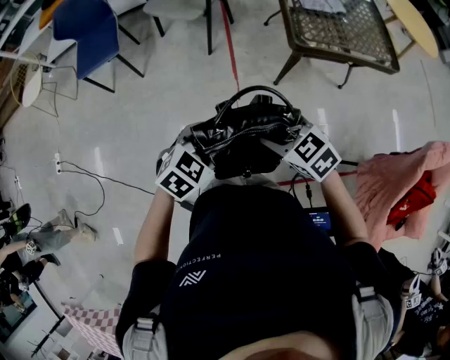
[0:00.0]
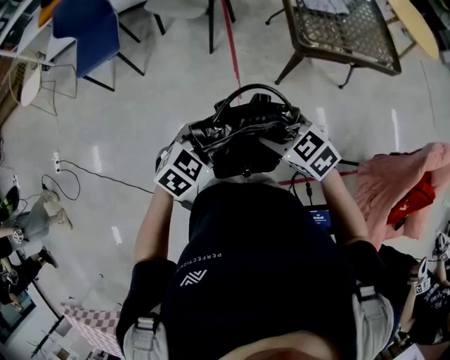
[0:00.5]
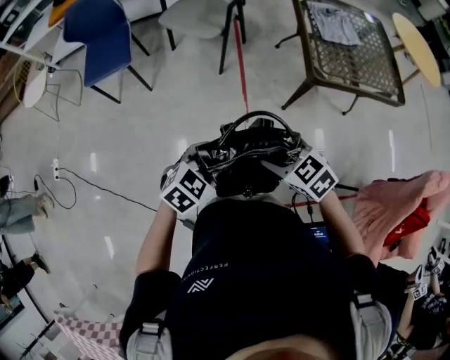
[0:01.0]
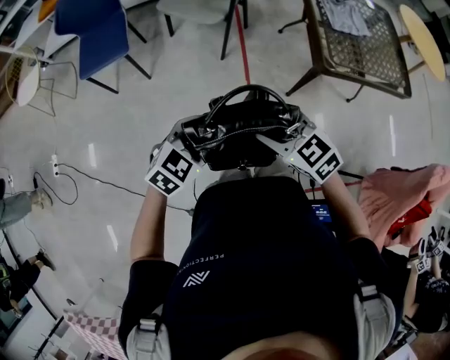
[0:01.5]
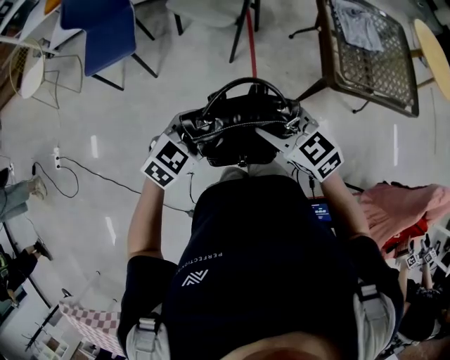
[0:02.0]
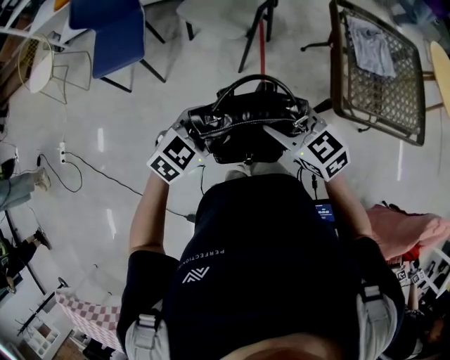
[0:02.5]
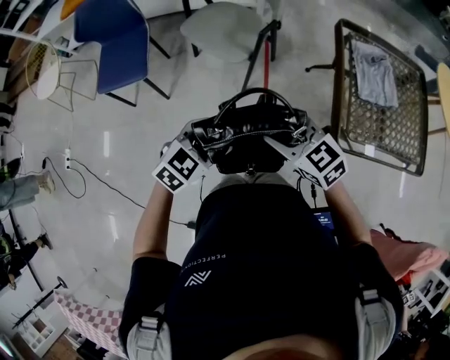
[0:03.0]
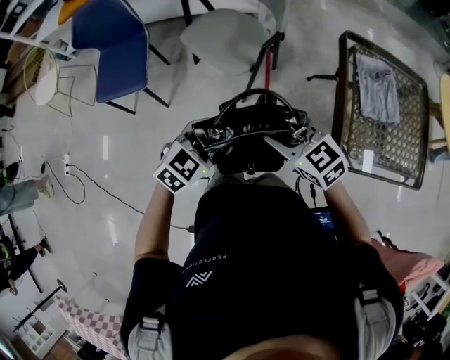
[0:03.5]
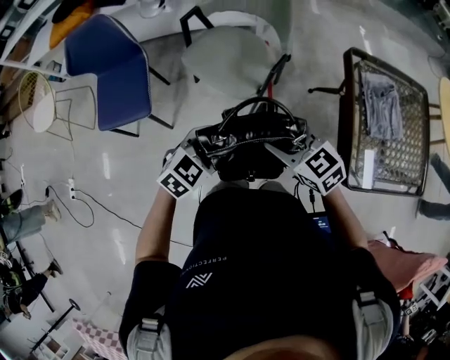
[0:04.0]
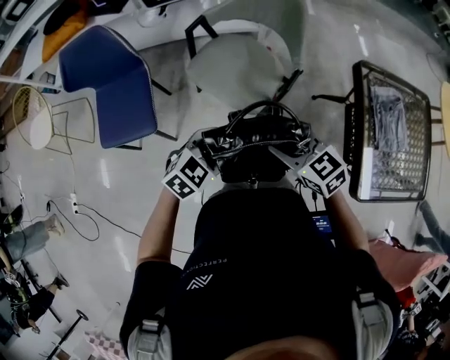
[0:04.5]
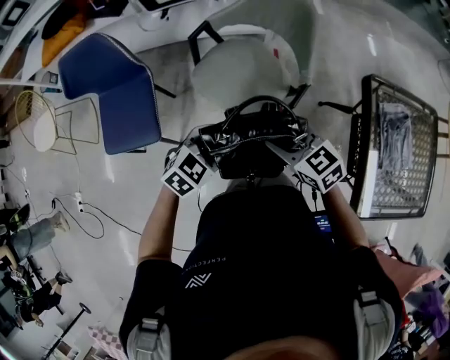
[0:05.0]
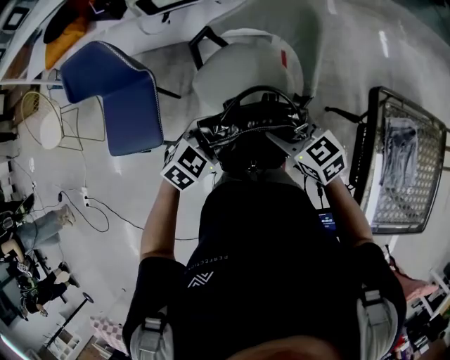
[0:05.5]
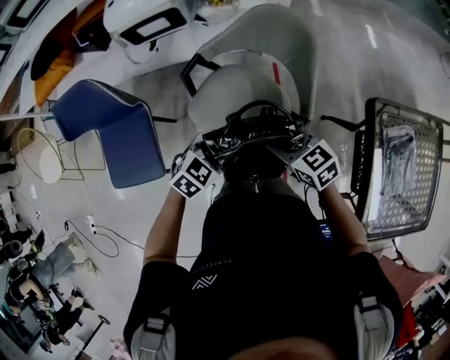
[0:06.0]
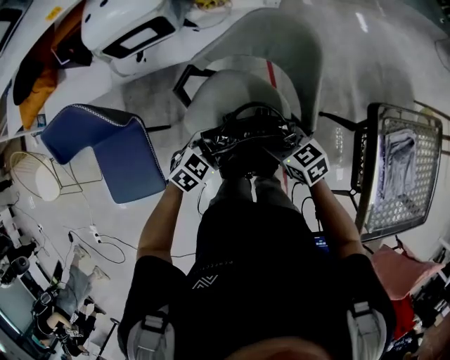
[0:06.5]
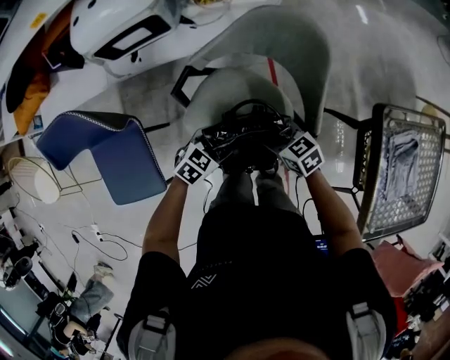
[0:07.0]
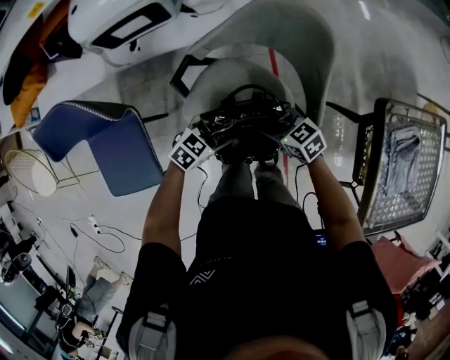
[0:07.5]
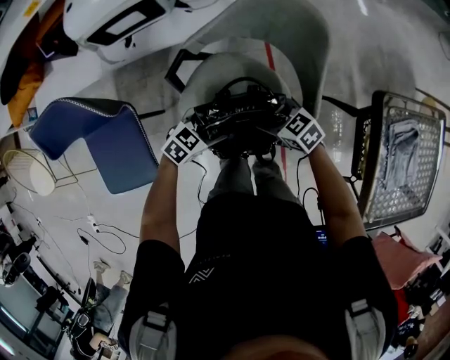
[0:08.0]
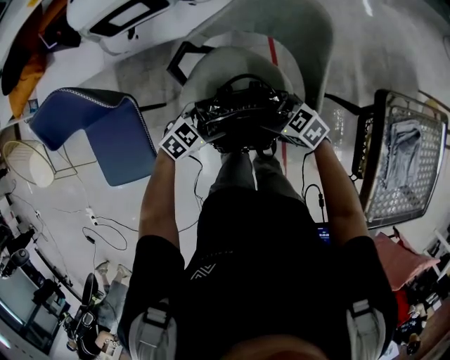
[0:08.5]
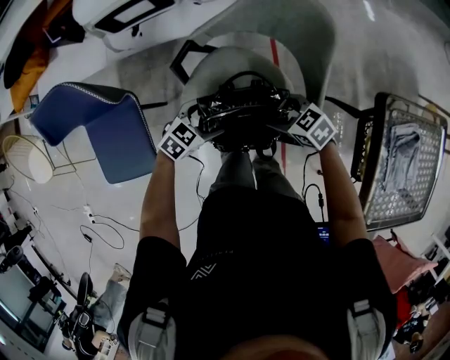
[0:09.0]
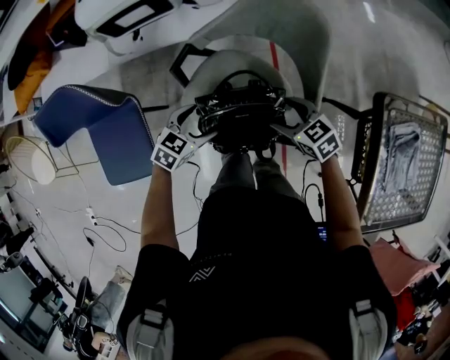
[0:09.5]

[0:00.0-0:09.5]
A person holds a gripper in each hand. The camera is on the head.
0:00.0 to 0:02.0: Both grippers travel together forward and to the left, roughly 25 cm.
0:02.0 to 0:04.0: The two grippers go approximately 35 cm forward.
0:04.0 to 0:05.5: The two grippers go about 25 cm forward.
0:05.5 to 0:07.5: The right gripper goes some 15 cm downward. The left gripper ends up some 25 cm from where it was.
0:07.5 to 0:09.5: The left gripper shifts by roughly 5 cm, while the right gripper shifts by roughly 5 cm.

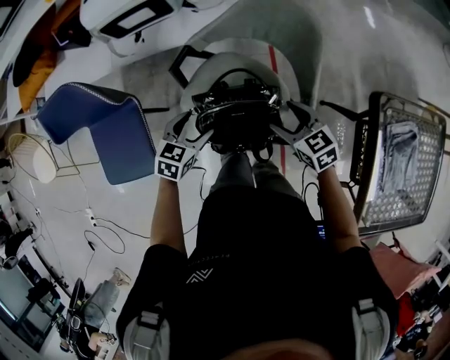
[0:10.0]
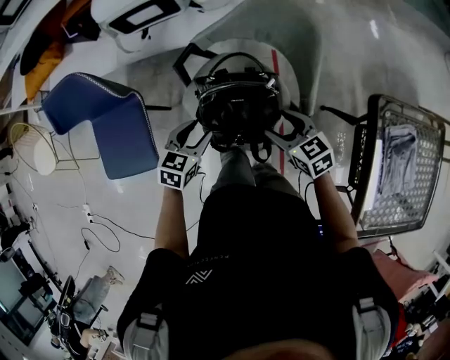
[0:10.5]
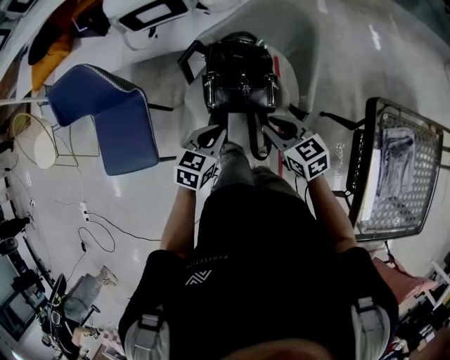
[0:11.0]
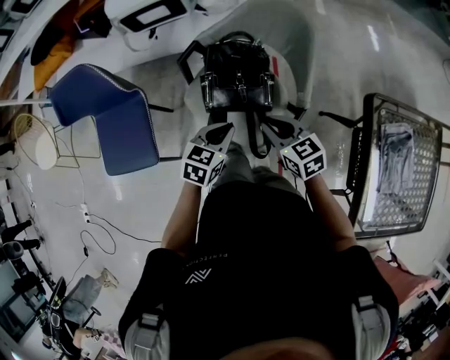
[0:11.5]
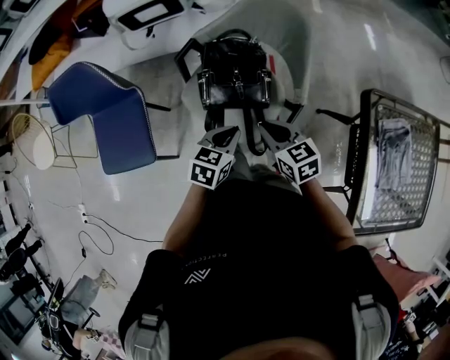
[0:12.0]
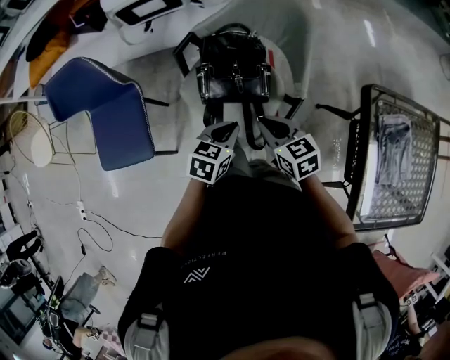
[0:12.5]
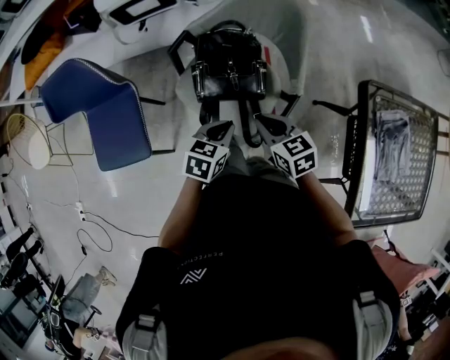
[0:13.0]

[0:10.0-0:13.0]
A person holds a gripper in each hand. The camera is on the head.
0:10.0 to 0:11.5: The right gripper goes approximately 5 cm backward, and closes its fingers, while the left gripper travels to the right and backward by approximately 10 cm, and closes.
0:11.5 to 0:13.0: The grippers make only small movements.

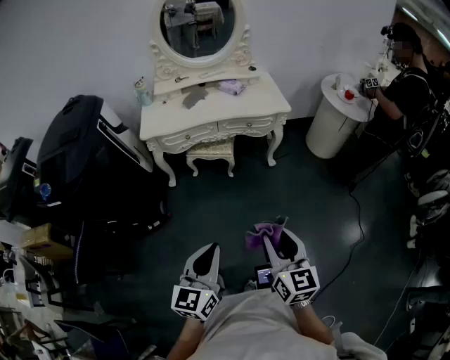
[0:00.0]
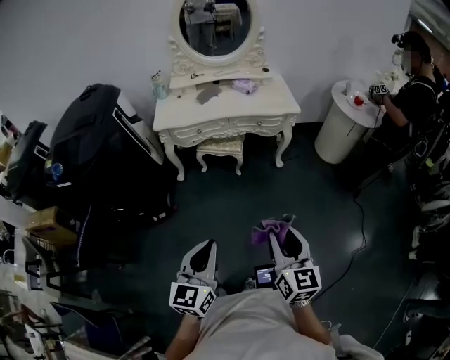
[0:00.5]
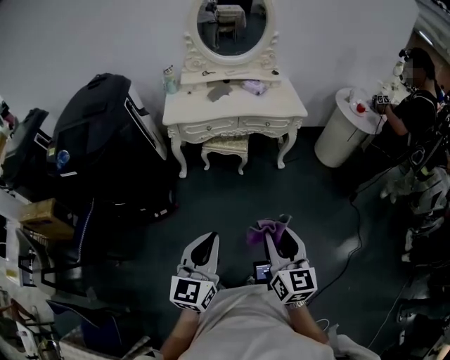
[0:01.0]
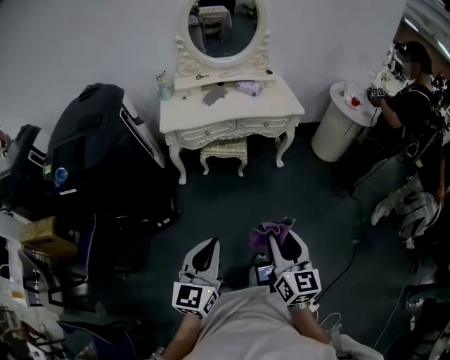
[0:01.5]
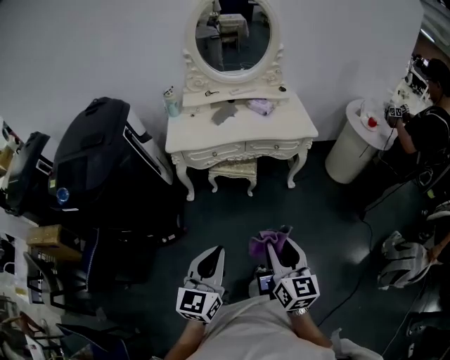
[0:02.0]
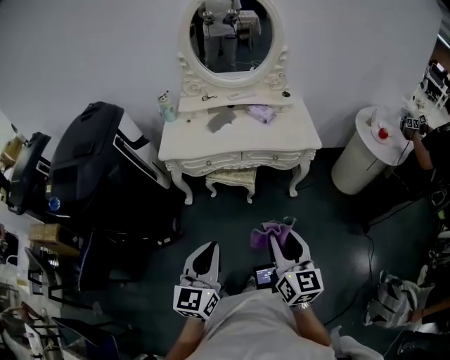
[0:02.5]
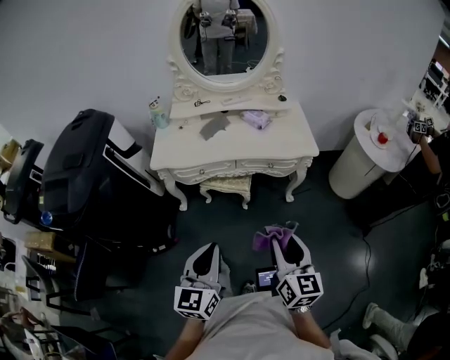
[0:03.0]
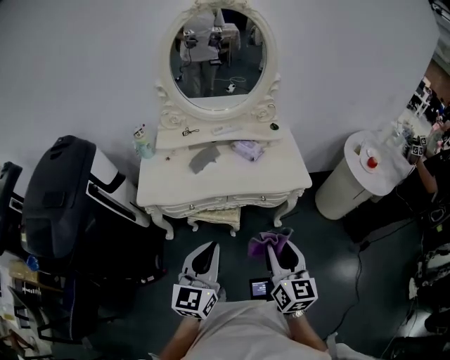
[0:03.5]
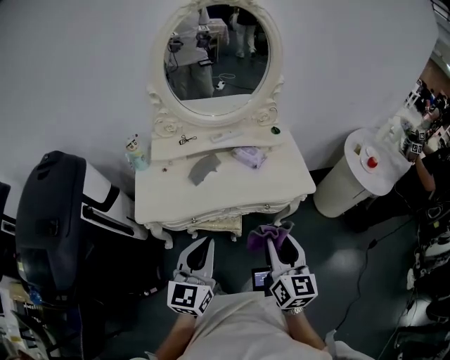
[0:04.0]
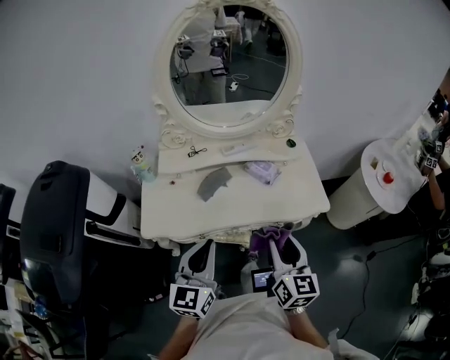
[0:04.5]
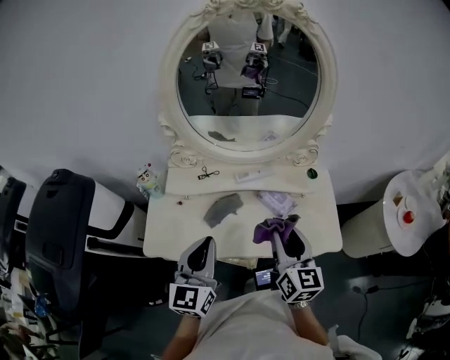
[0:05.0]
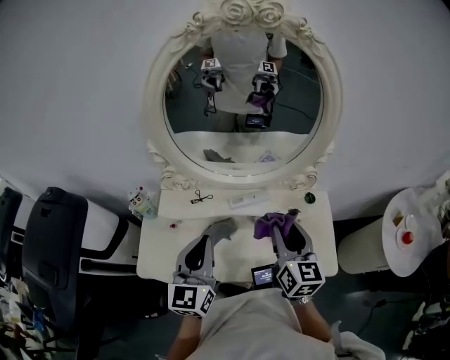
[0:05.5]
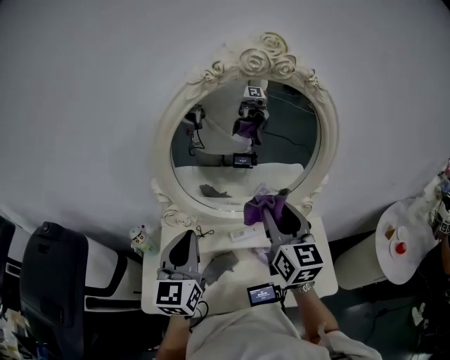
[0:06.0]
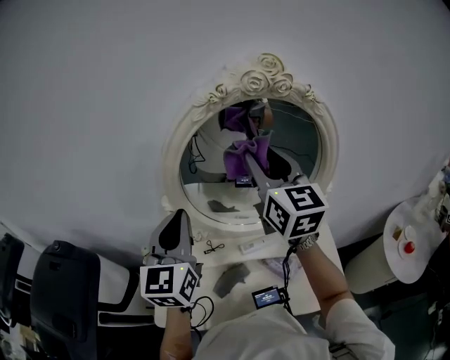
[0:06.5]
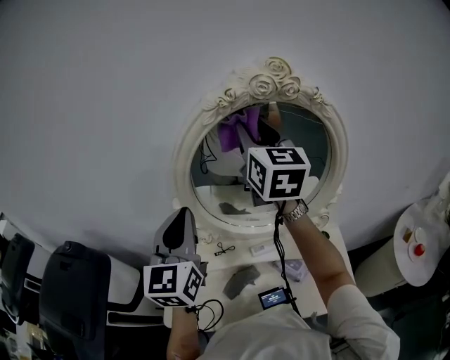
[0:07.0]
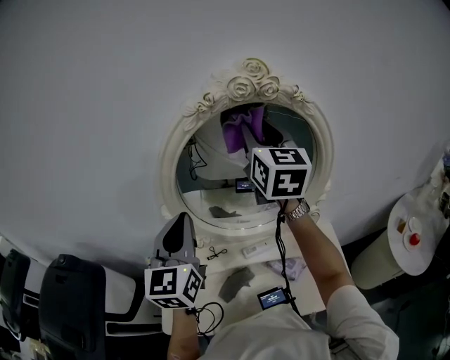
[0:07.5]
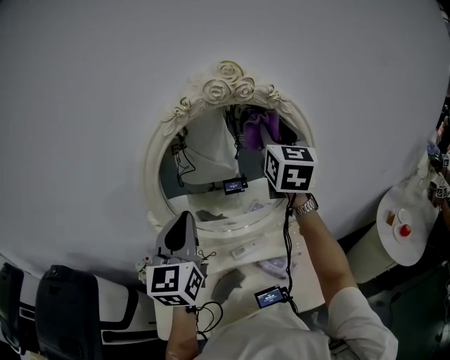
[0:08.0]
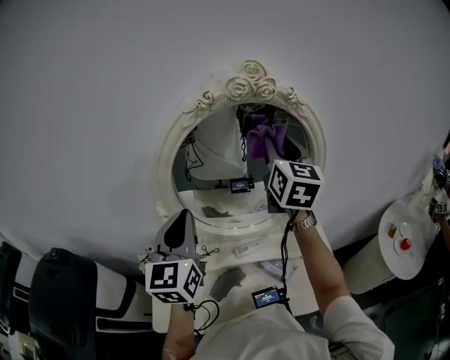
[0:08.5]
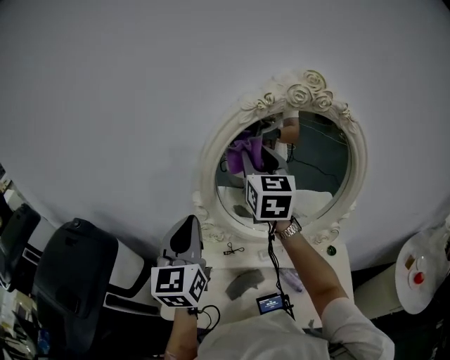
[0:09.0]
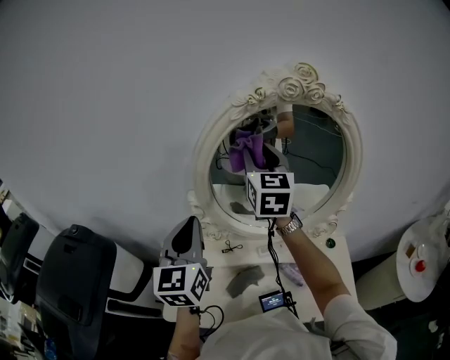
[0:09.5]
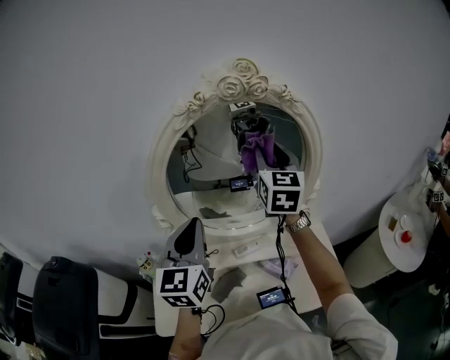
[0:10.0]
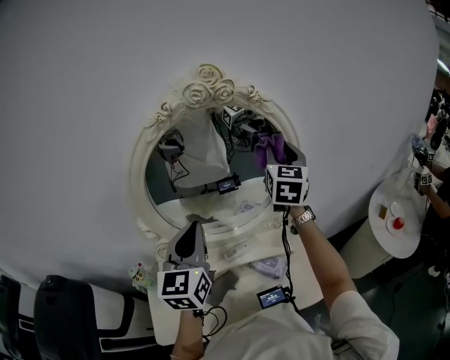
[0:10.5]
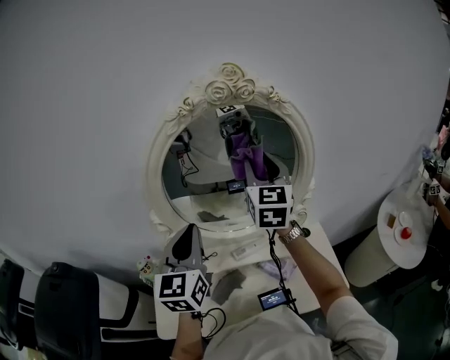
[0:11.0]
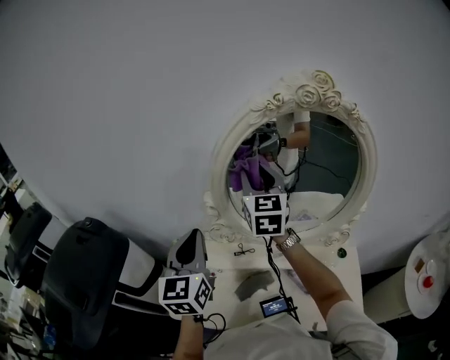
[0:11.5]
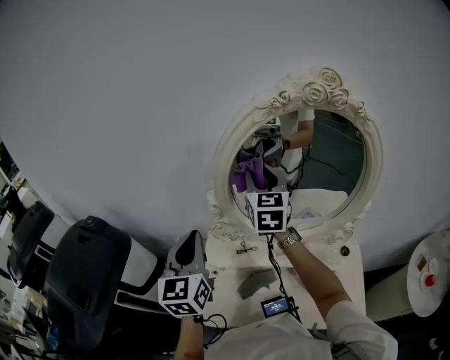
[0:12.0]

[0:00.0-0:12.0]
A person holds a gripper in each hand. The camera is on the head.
0:00.0 to 0:02.0: Both grippers move to the left and forward, roughly 10 cm.
0:02.0 to 0:04.0: Both grippers are carried forward, approximately 40 cm.
0:04.0 to 0:06.0: The two grippers travel together, forward, approximately 50 cm.
0:06.0 to 0:08.0: The right gripper travels upward and forward by about 25 cm, and rotates approximately 20 degrees, while the left gripper shifts roughly 10 cm upward.
0:08.0 to 0:10.0: The left gripper reaches about 10 cm to the left, then returns. Meanwhile the right gripper moves downward, approximately 5 cm, and travels to the left and back again, some 20 cm each way.
0:10.0 to 0:12.0: The left gripper shifts by approximately 15 cm, and rotates roughly 20 degrees; the right gripper shifts by roughly 20 cm, and turns by about 20 degrees.

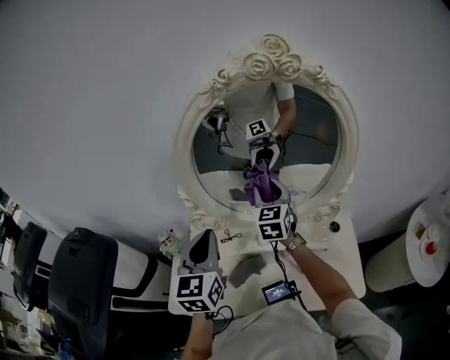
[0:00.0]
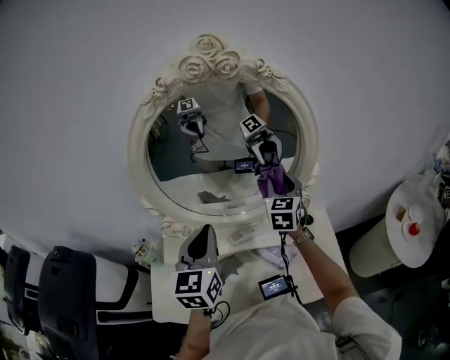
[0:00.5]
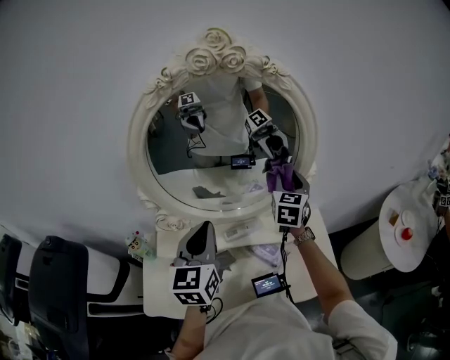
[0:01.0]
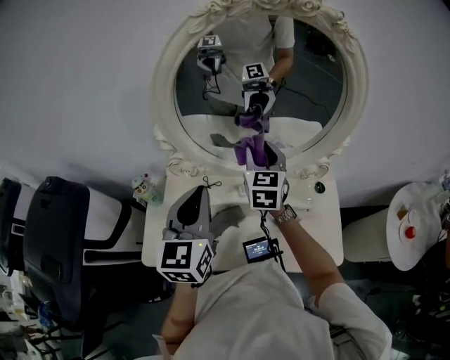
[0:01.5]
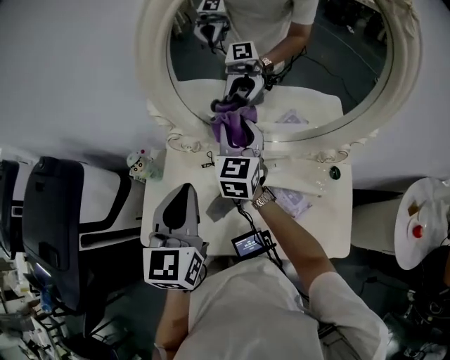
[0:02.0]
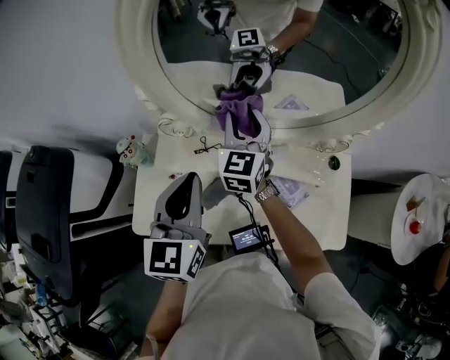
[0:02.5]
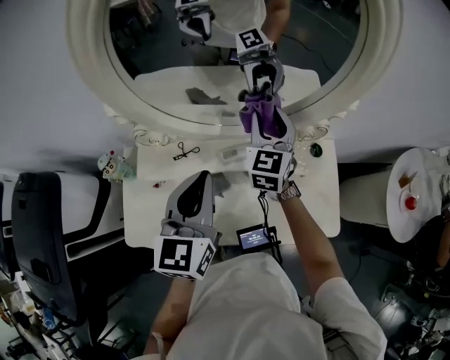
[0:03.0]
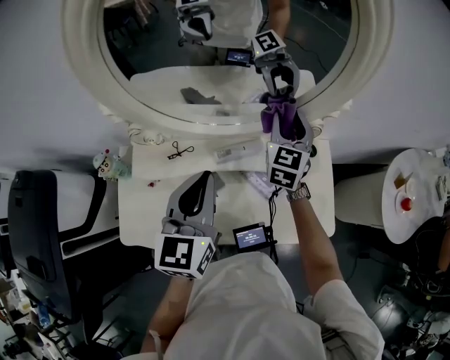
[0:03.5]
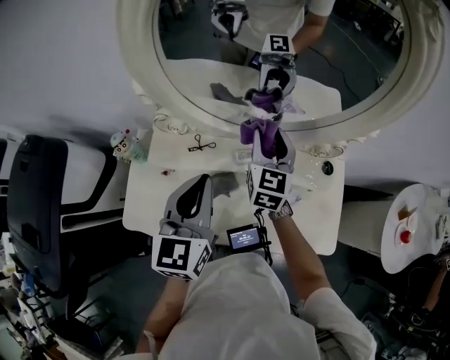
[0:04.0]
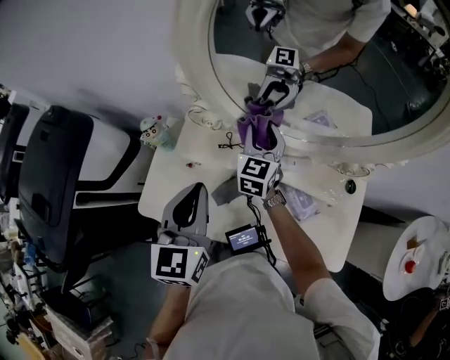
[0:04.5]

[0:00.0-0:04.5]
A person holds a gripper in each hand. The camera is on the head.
0:00.0 to 0:02.0: Both grippers move downward, approximately 5 cm. The right gripper travels to the right and back again, about 20 cm each way. Meanwhile the left gripper goes to the right and returns, some 10 cm each way.
0:02.0 to 0:04.5: The left gripper moves downward, approximately 5 cm, and travels to the right and back again, some 15 cm each way, while the right gripper shifts some 10 cm downward, and goes to the right and returns, approximately 25 cm each way.
